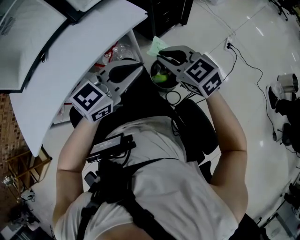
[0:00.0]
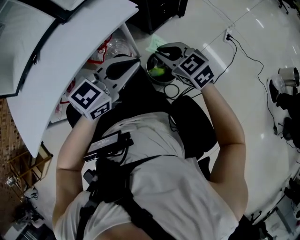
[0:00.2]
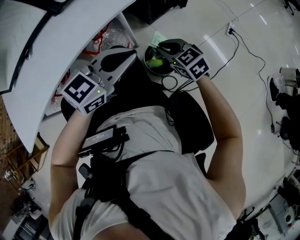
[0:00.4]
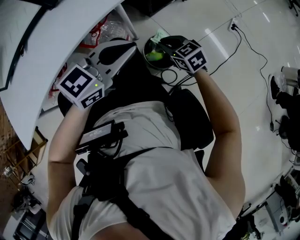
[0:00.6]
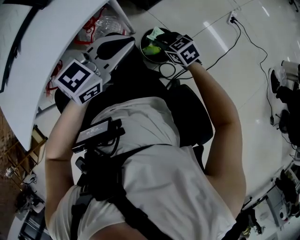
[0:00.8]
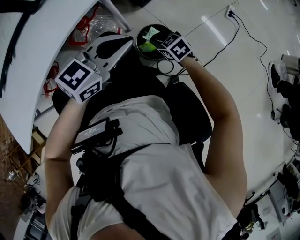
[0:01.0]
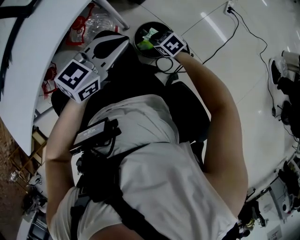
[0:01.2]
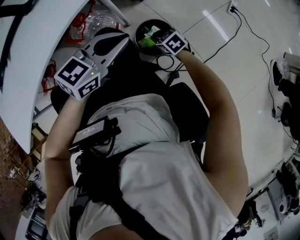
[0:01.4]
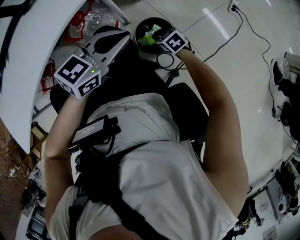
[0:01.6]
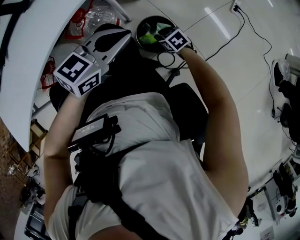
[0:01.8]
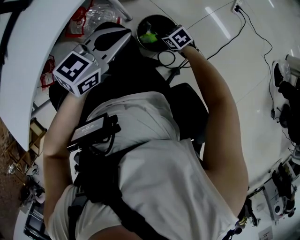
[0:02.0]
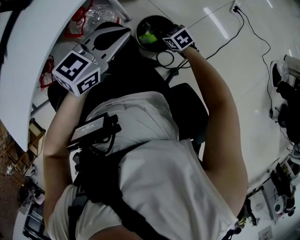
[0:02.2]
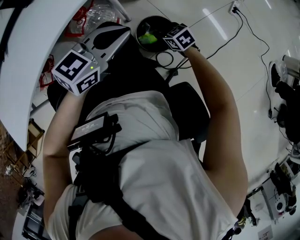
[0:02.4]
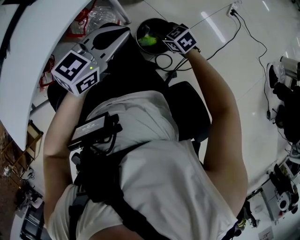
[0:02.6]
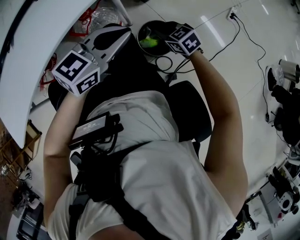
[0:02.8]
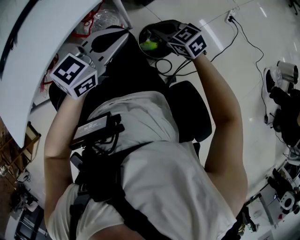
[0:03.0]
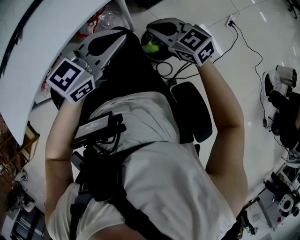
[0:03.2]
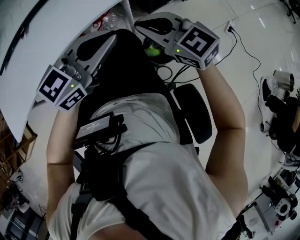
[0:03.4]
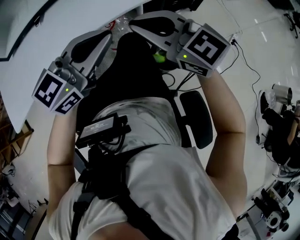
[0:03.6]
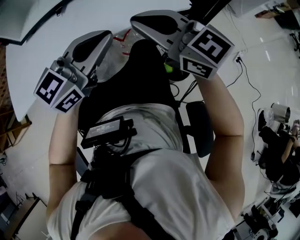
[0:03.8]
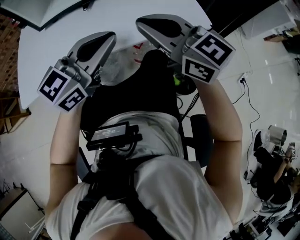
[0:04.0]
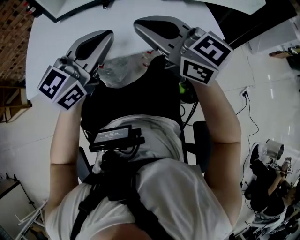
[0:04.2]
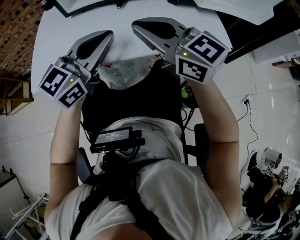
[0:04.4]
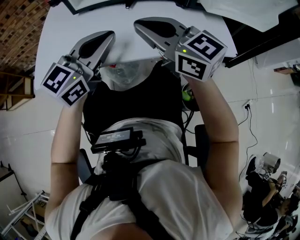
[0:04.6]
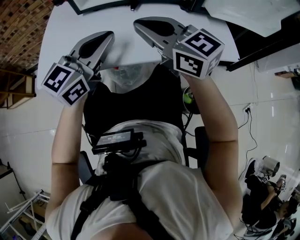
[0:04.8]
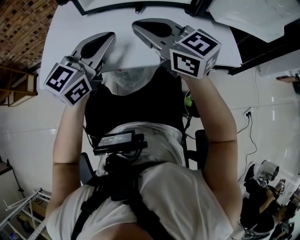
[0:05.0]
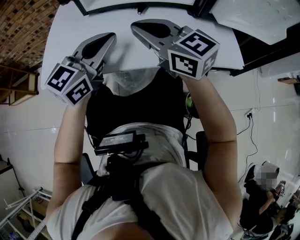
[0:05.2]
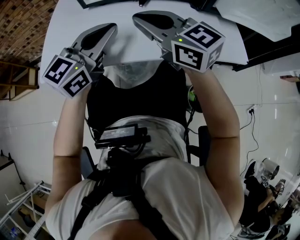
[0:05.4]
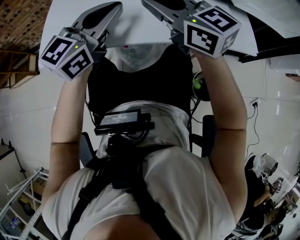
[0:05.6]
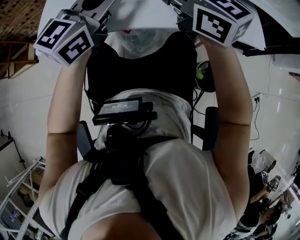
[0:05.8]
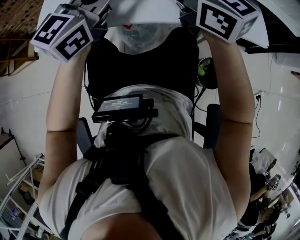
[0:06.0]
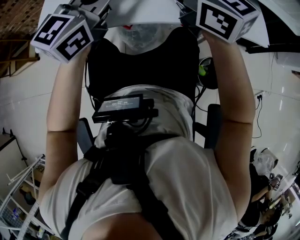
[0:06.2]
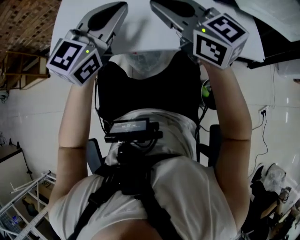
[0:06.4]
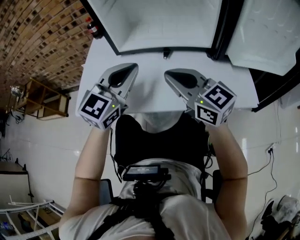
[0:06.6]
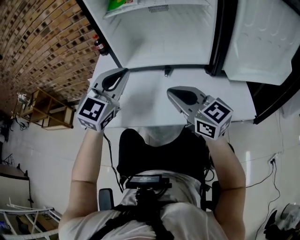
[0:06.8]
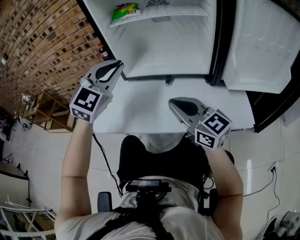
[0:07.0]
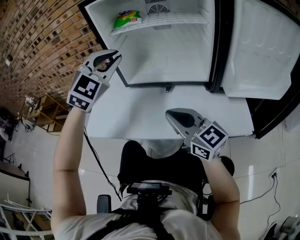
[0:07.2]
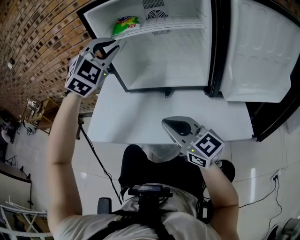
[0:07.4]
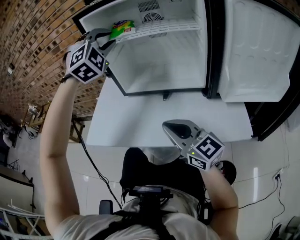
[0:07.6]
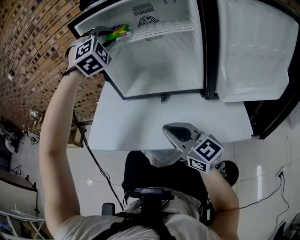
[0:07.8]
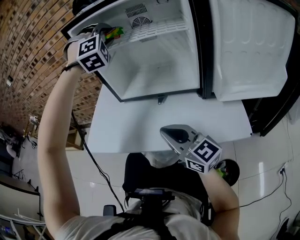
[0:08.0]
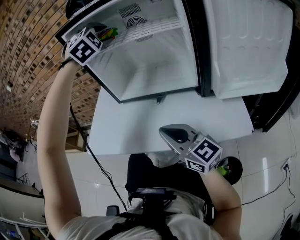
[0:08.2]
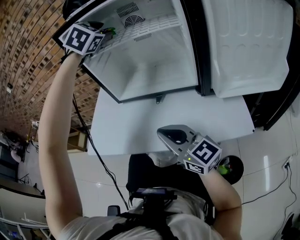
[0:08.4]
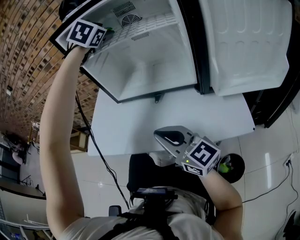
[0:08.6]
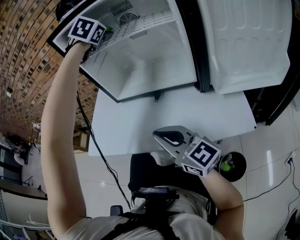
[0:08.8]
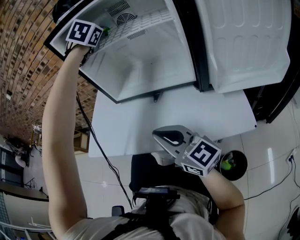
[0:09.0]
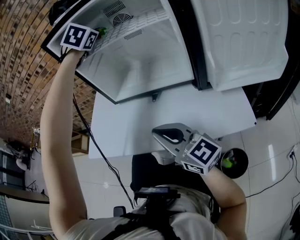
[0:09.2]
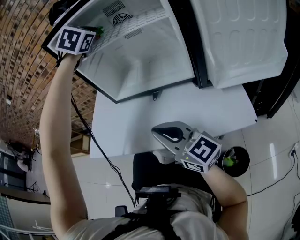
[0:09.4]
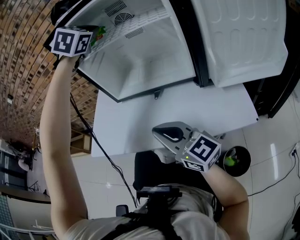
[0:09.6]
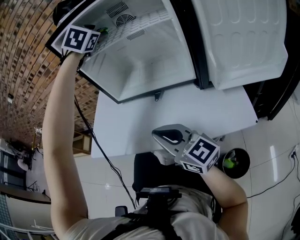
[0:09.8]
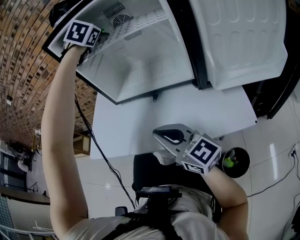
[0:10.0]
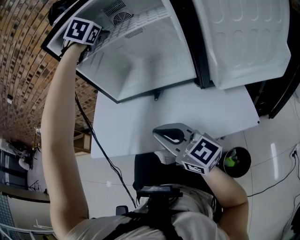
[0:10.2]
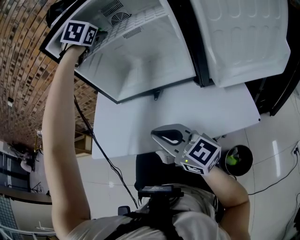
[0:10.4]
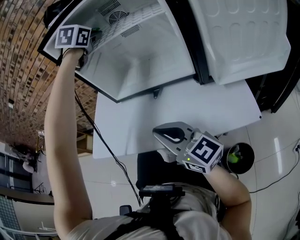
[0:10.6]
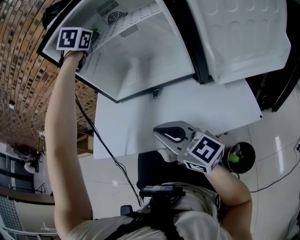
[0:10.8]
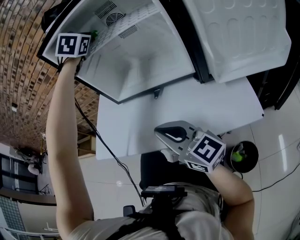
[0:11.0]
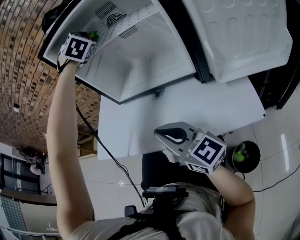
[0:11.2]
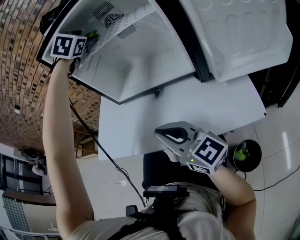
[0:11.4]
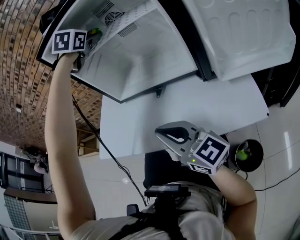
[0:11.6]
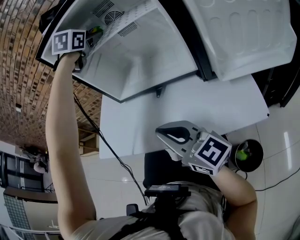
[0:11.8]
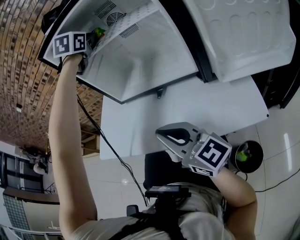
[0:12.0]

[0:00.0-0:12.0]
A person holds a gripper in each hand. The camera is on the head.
0:00.0 to 0:01.6: The right gripper heads downward, covering some 35 cm, and turns by approximately 30 degrees. Meanwhile the left gripper moves downward, approximately 10 cm.
0:01.6 to 0:03.0: The left gripper changes place by about 5 cm. The right gripper shifts some 20 cm upward, turns by roughly 20 degrees, and opens, then closes once more.
0:03.0 to 0:04.4: The left gripper moves roughly 35 cm, and rotates approximately 40 degrees, while the right gripper moves about 50 cm, and tips its fingers upward by roughly 30 degrees.
0:04.4 to 0:06.0: The left gripper ends up approximately 5 cm from where it was. Meanwhile the right gripper travels to the left and forward by approximately 10 cm.
0:06.0 to 0:07.6: The left gripper is displaced upward and forward by about 30 cm, twists approximately 80 degrees clockwise, seen from behind, and opens up.
0:07.6 to 0:09.0: The left gripper shifts about 15 cm forward and to the right, turns by roughly 40 degrees, and opens and closes again.
0:09.0 to 0:10.4: The left gripper opens its fingers.
0:10.4 to 0:12.0: The left gripper closes.

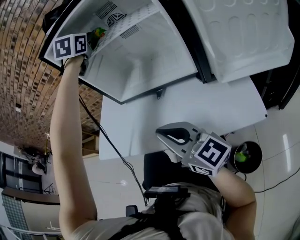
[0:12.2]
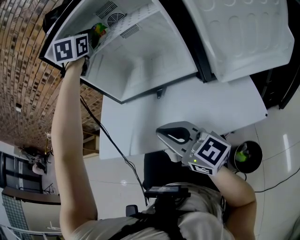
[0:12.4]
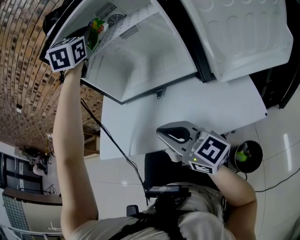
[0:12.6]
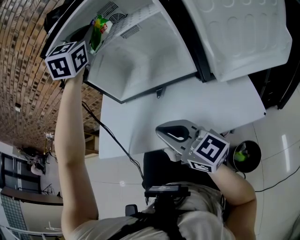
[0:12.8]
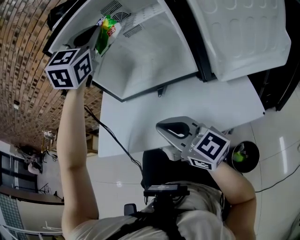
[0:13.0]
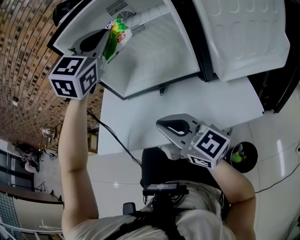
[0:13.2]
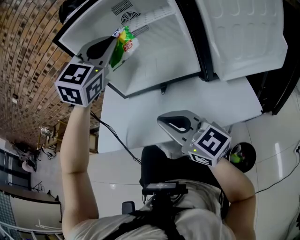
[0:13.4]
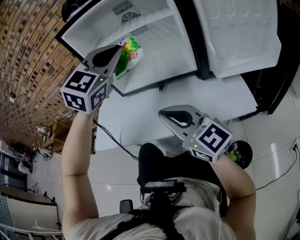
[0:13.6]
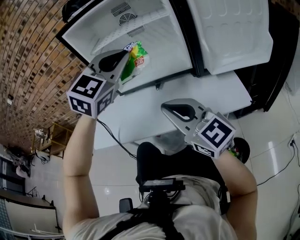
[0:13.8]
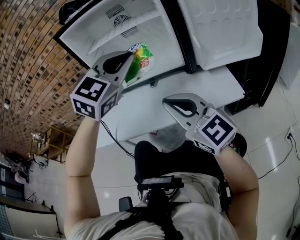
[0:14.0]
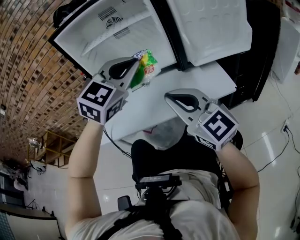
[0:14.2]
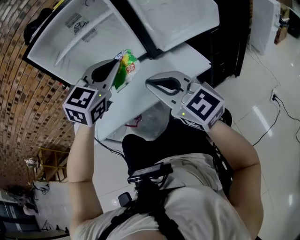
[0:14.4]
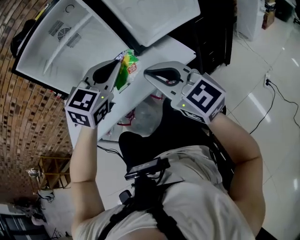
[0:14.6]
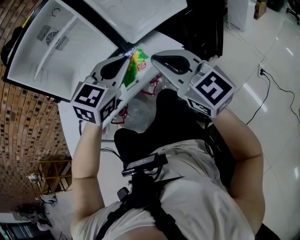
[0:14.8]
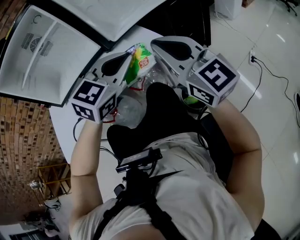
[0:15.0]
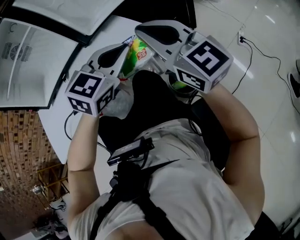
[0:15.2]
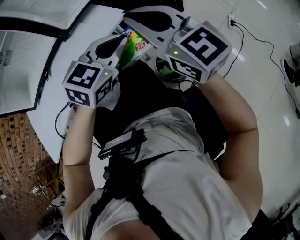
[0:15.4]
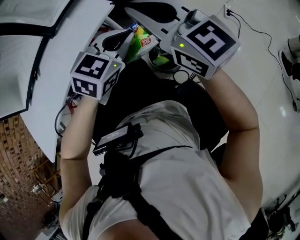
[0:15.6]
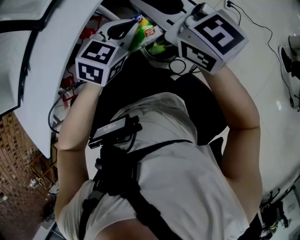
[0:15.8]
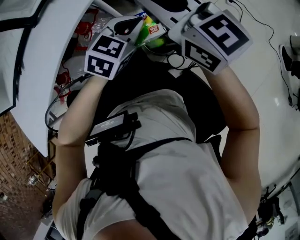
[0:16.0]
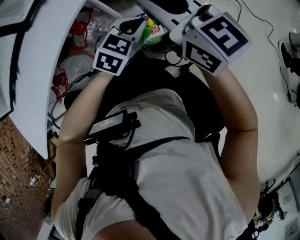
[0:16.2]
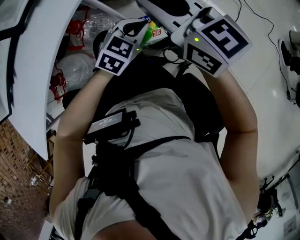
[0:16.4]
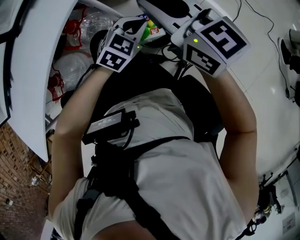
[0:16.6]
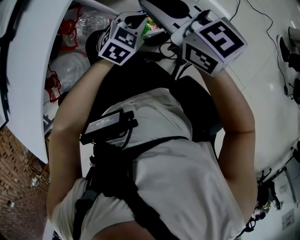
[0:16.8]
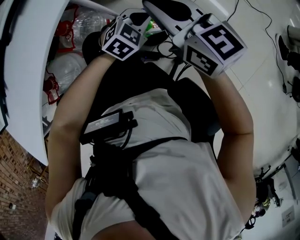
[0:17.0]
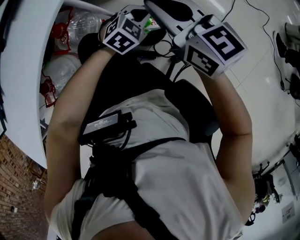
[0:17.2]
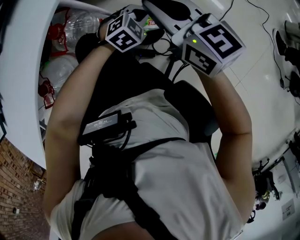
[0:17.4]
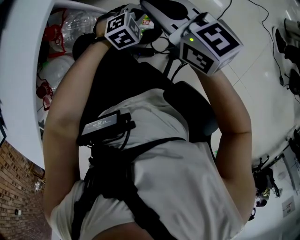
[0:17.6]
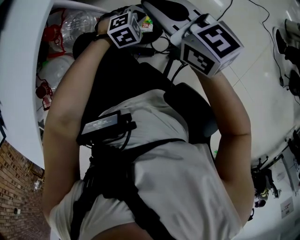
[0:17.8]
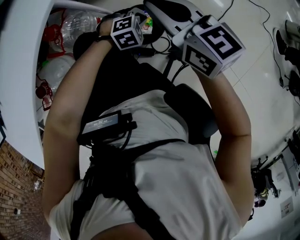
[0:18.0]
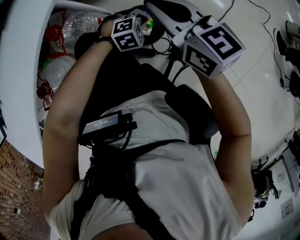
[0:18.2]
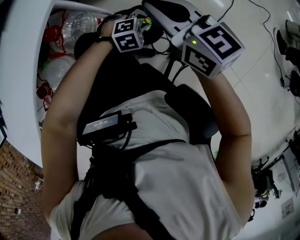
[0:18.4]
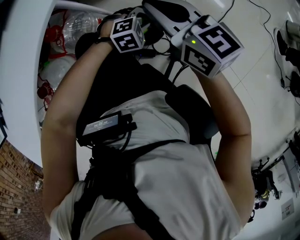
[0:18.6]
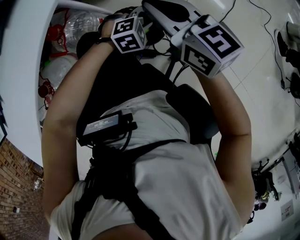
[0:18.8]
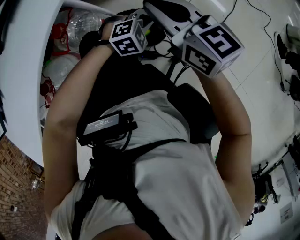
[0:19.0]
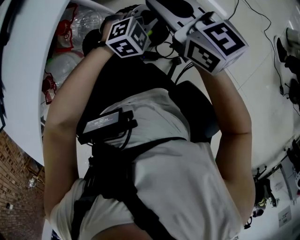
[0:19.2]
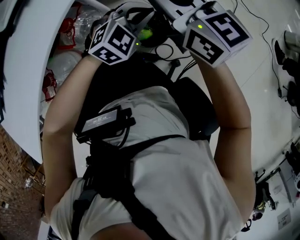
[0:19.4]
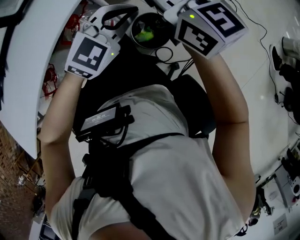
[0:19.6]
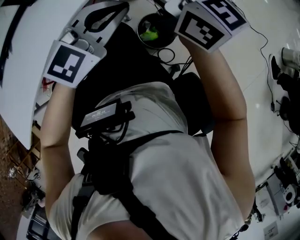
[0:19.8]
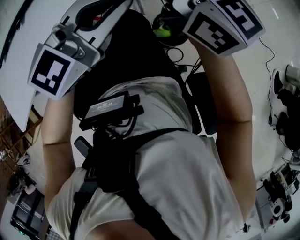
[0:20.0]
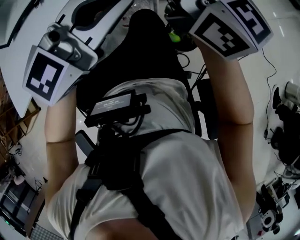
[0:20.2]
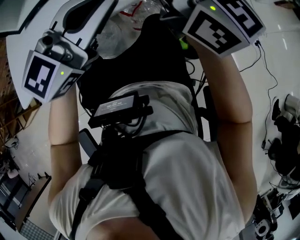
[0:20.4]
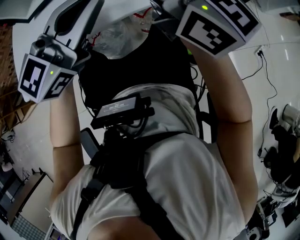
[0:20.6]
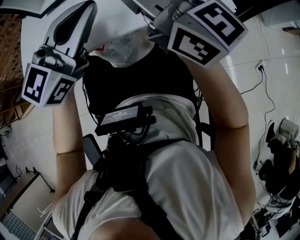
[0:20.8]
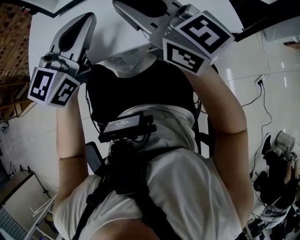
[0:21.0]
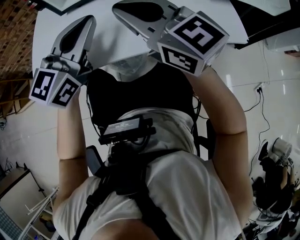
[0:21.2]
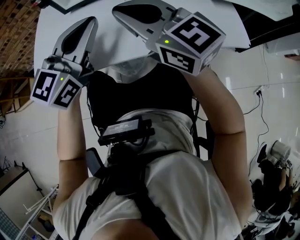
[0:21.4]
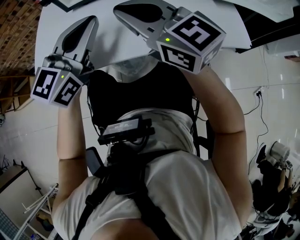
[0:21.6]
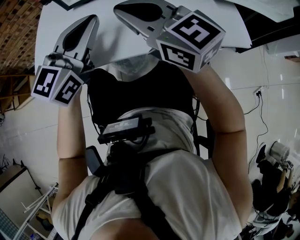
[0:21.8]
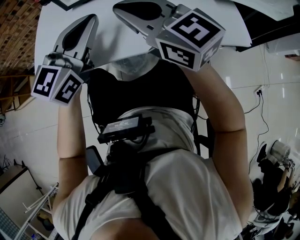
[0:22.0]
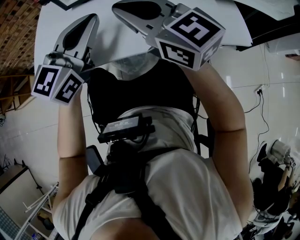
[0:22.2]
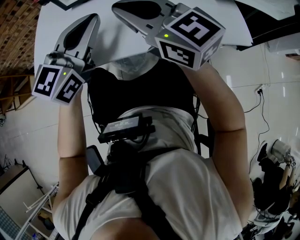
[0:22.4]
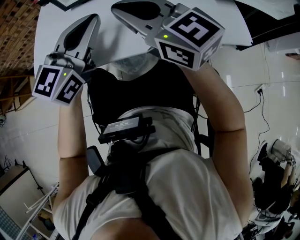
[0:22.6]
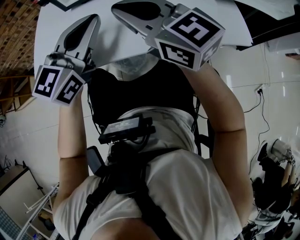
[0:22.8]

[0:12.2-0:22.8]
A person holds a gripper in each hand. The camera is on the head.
0:12.2 to 0:13.8: The right gripper changes place by some 5 cm, and changes its angle by approximately 20 degrees. The left gripper is displaced backward by about 30 cm, and swivels about 30 degrees.
0:13.8 to 0:15.2: The left gripper ends up about 40 cm from where it was, and changes its angle by approximately 40 degrees. Meanwhile the right gripper ends up roughly 30 cm from where it was, and rotates approximately 40 degrees.
0:15.2 to 0:16.8: The left gripper goes about 30 cm downward, and changes its angle by some 30 degrees, while the right gripper travels downward by about 20 cm, and changes its angle by about 30 degrees.
0:16.8 to 0:18.2: The right gripper moves downward, some 5 cm; the left gripper heads downward, covering approximately 15 cm, and swivels approximately 30 degrees.
0:18.2 to 0:19.8: The left gripper shifts approximately 35 cm upward, and tips its fingers upward by approximately 50 degrees, while the right gripper travels upward and to the left by approximately 20 cm, and changes its angle by approximately 30 degrees.
0:19.8 to 0:21.2: The right gripper ends up about 35 cm from where it was, and rotates some 40 degrees, while the left gripper moves some 40 cm, and changes its angle by about 50 degrees.
0:21.2 to 0:22.8: The grippers move only a little.

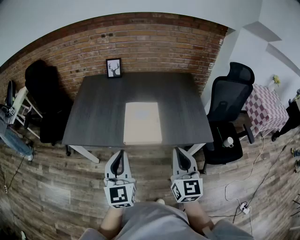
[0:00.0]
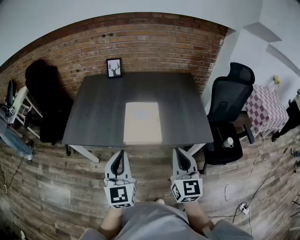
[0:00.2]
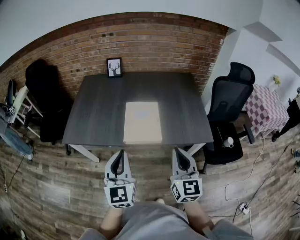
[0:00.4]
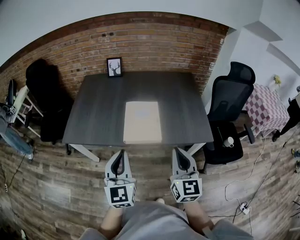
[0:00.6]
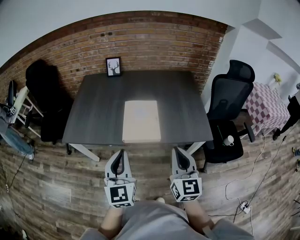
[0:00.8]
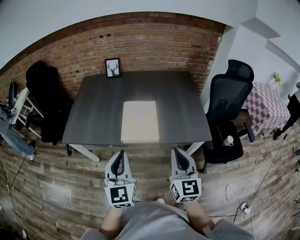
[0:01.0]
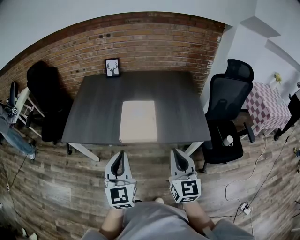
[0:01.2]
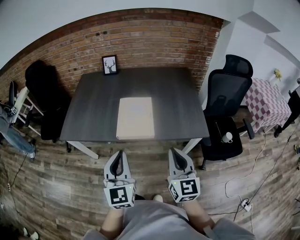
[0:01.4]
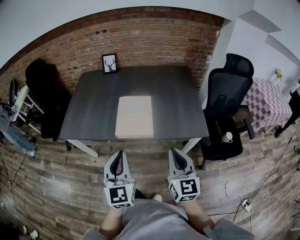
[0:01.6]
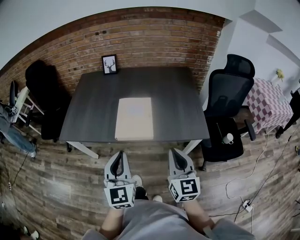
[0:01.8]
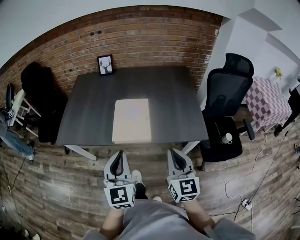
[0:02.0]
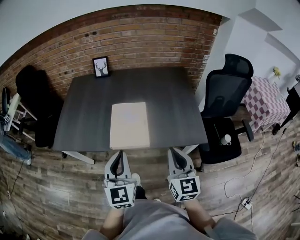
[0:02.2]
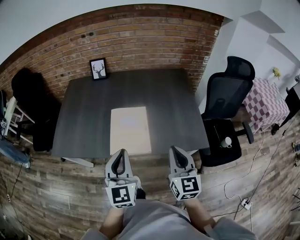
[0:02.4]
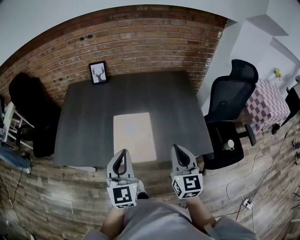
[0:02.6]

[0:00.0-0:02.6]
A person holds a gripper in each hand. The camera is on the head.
0:00.0 to 0:01.2: The grippers move only a little.
0:01.2 to 0:02.6: The two grippers go roughly 15 cm forward.
